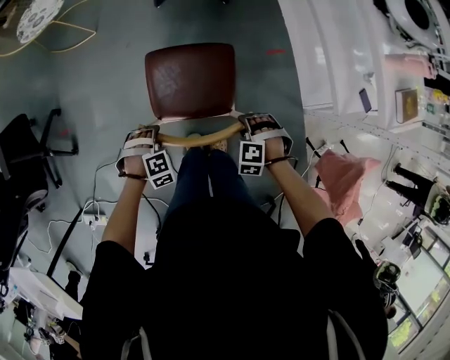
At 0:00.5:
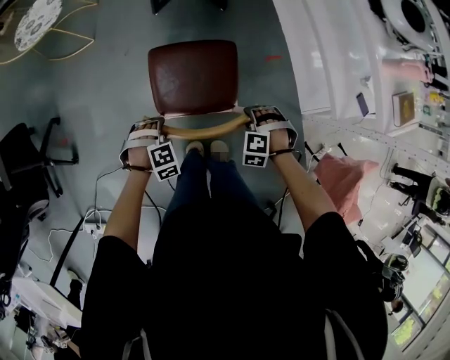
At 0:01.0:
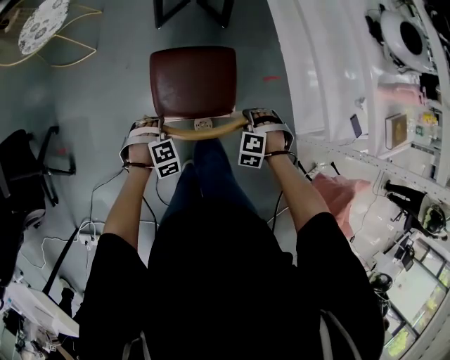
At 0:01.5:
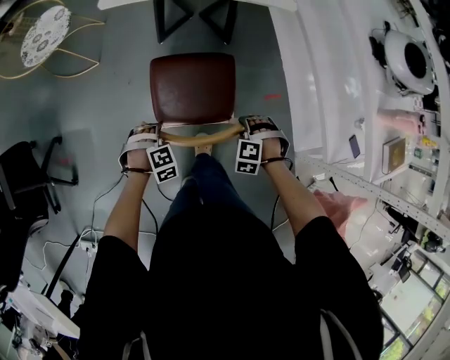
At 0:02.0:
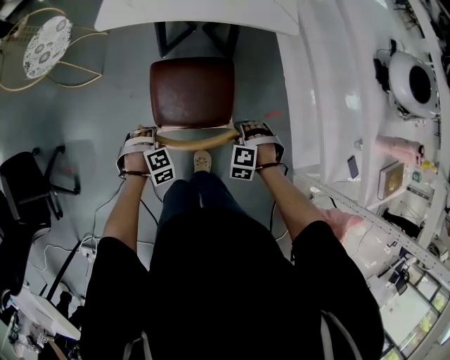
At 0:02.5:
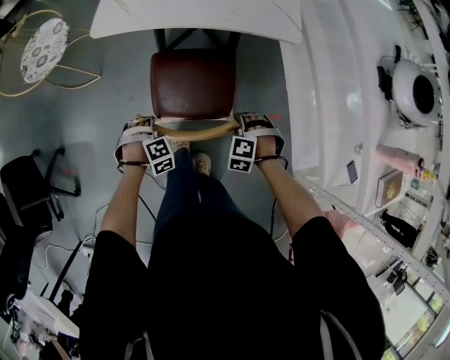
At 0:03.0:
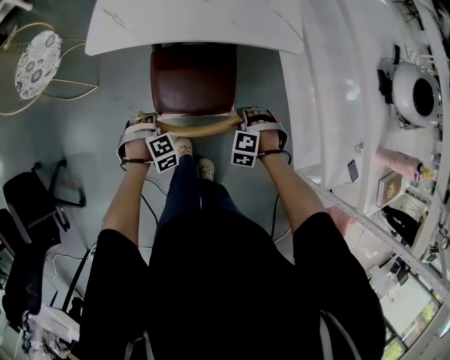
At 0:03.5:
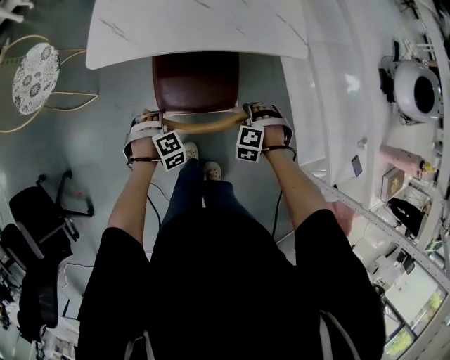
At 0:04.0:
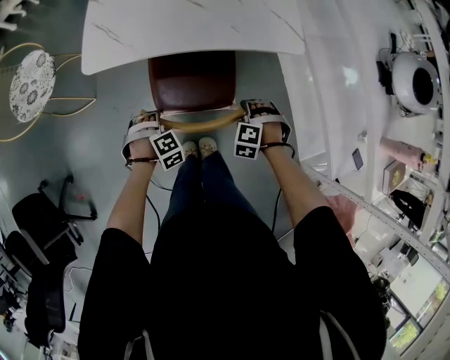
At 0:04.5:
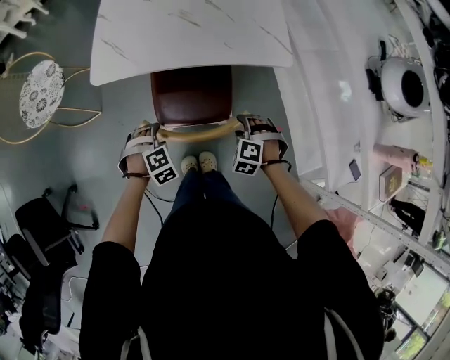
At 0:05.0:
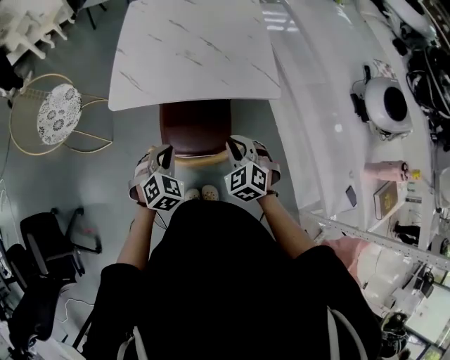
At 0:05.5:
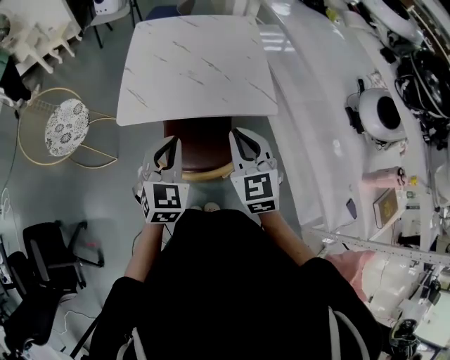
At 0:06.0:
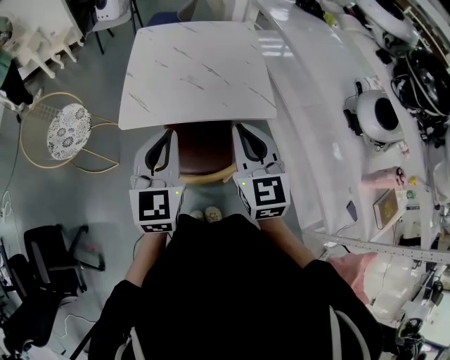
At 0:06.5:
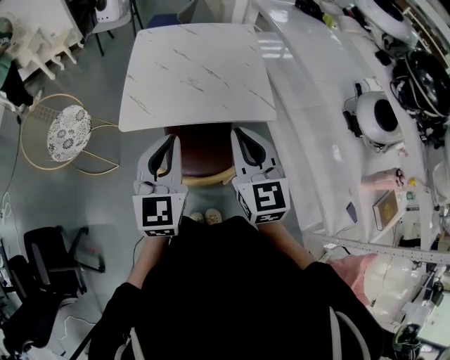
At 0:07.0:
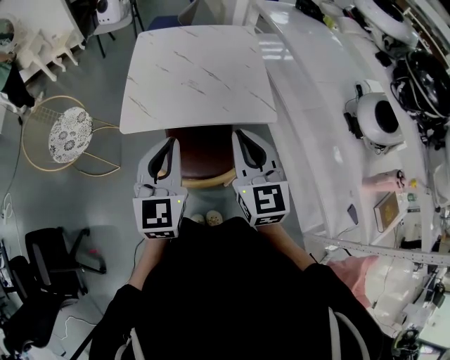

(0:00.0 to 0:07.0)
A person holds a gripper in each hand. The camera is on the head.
0:00.0 - 0:02.0: The left gripper shifts by approximately 30 cm. The right gripper shifts by roughly 30 cm.
0:02.0 - 0:03.5: The grippers both shift forward by about 20 cm.
0:03.5 - 0:05.0: Both grippers move upward, roughly 20 cm. The right gripper changes its angle by some 50 degrees, and closes up, while the left gripper swivels roughly 50 degrees, and closes up.
0:05.0 - 0:07.0: Both grippers move upward, some 25 cm. The right gripper angles its fingers upward, by about 40 degrees. The left gripper angles its fingers upward, by about 40 degrees.

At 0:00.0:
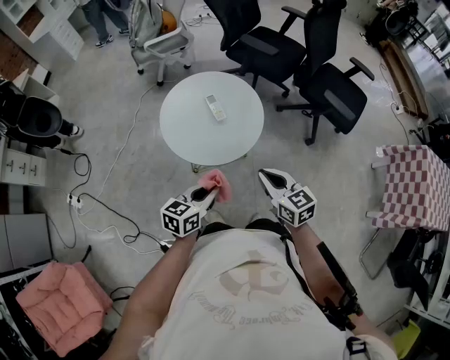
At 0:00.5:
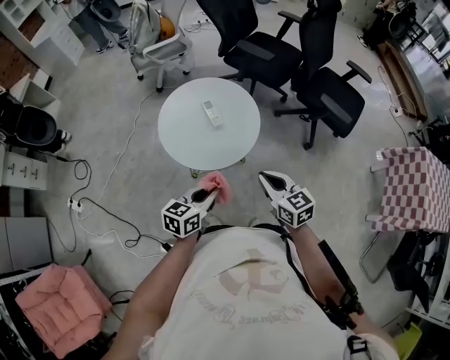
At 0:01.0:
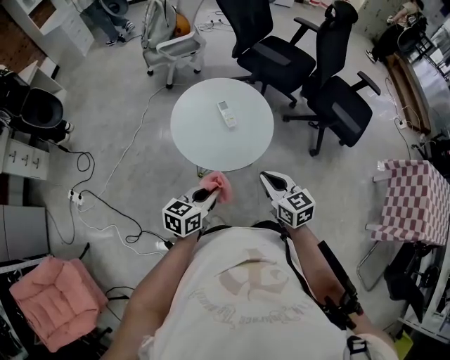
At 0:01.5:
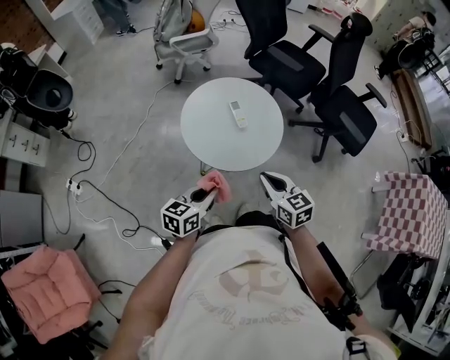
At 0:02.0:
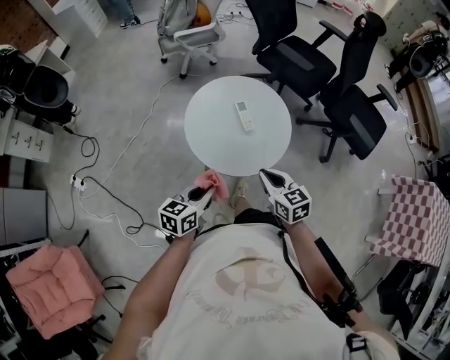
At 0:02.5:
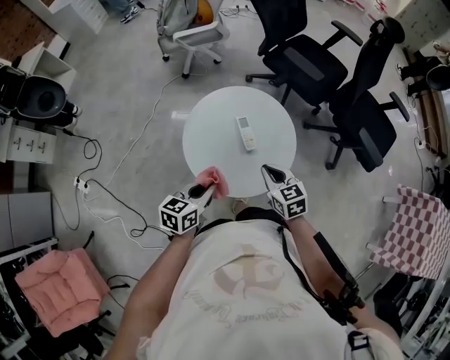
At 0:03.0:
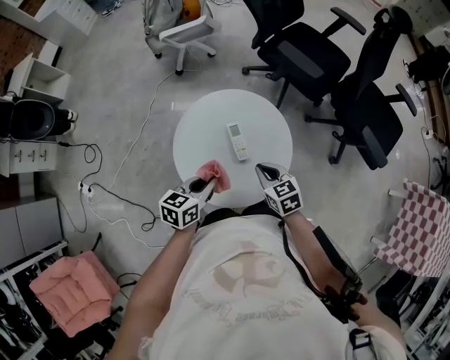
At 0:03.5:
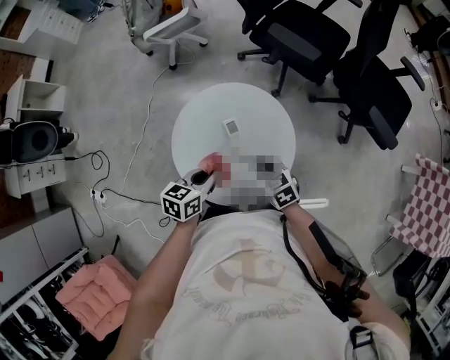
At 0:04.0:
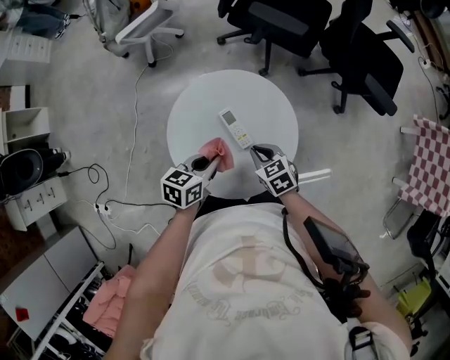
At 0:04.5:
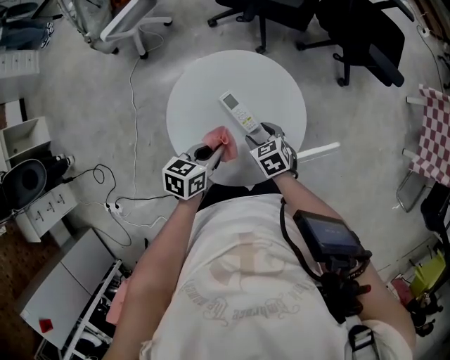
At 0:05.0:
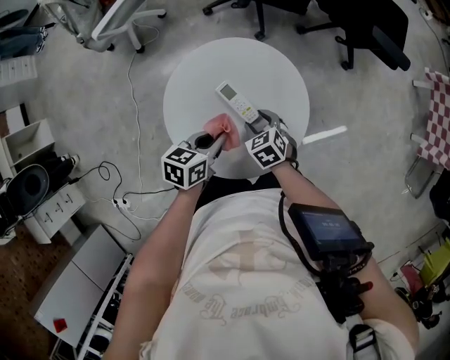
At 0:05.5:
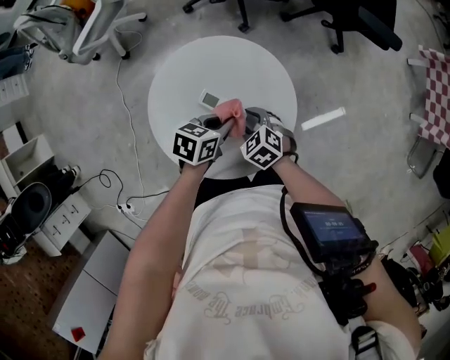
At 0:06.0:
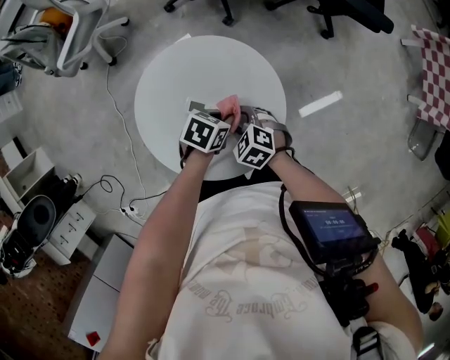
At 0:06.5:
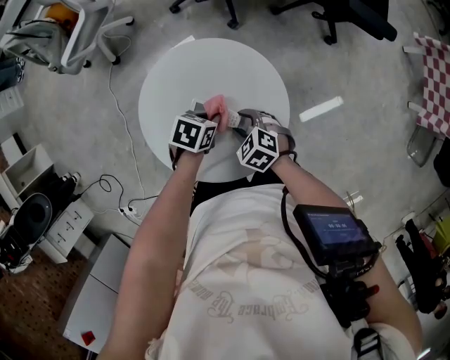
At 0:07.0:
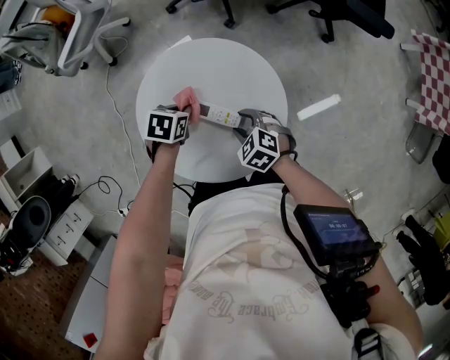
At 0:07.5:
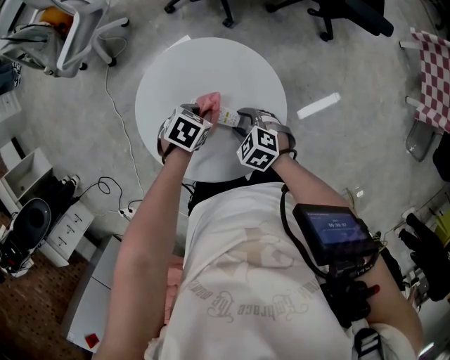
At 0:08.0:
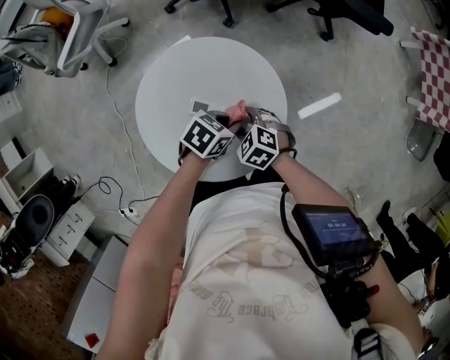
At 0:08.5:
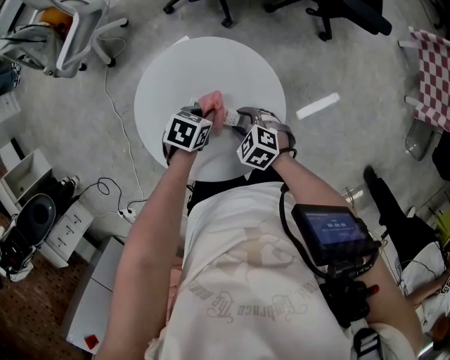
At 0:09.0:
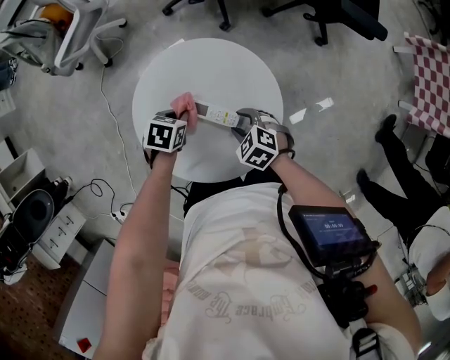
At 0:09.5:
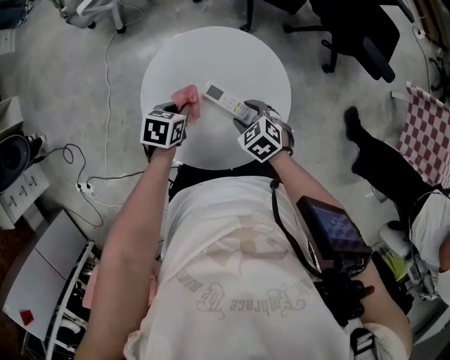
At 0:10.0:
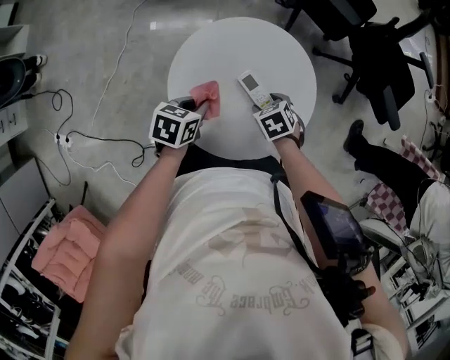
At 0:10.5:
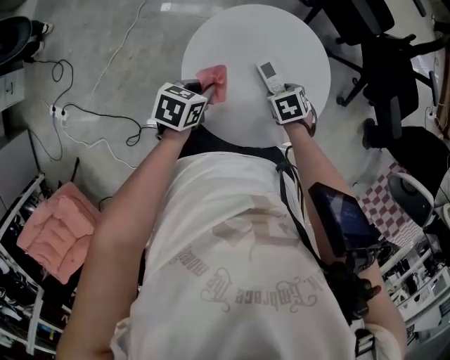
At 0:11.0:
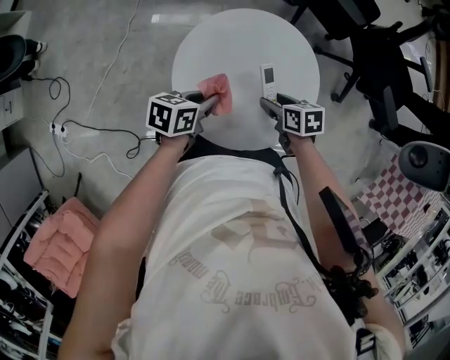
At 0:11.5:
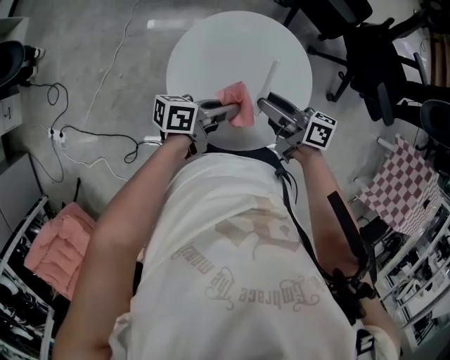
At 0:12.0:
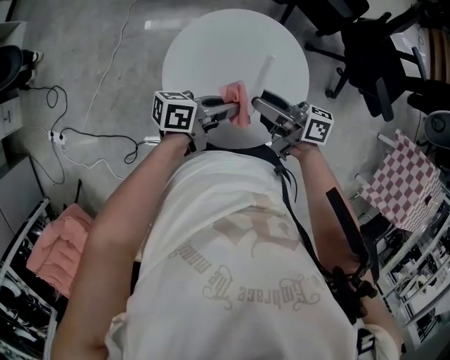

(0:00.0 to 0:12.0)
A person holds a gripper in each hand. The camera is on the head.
0:00.0 - 0:02.0: The right gripper travels to the left and forward by approximately 10 cm, while the left gripper travels to the left by some 10 cm.
0:02.0 - 0:04.0: The right gripper travels forward and downward by about 25 cm, and changes its angle by some 20 degrees, while the left gripper is displaced forward by about 25 cm, and swivels some 20 degrees.
0:04.0 - 0:06.0: The right gripper moves downward, about 5 cm, and opens up. Meanwhile the left gripper ends up roughly 15 cm from where it was, and swivels approximately 40 degrees.
0:08.0 - 0:10.0: The left gripper changes place by roughly 20 cm, and turns by approximately 50 degrees.
0:10.0 - 0:12.0: The right gripper heads upward, covering roughly 20 cm, and points its fingers approximately 80 degrees further upward; the left gripper changes place by some 15 cm, and tilts its fingers approximately 40 degrees upward.

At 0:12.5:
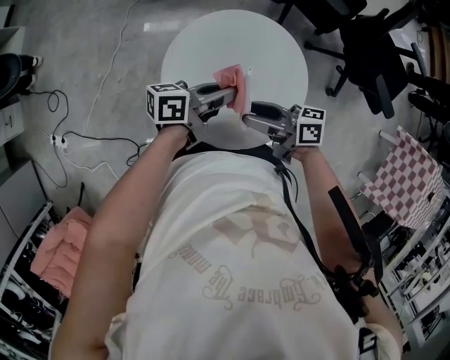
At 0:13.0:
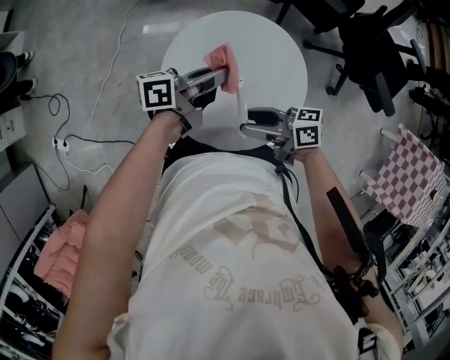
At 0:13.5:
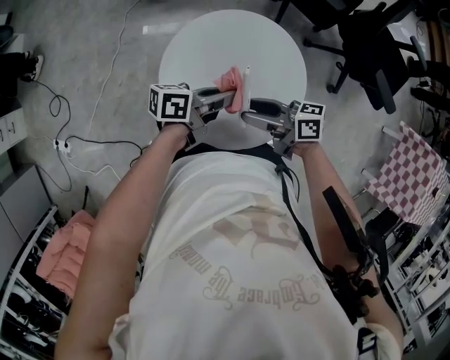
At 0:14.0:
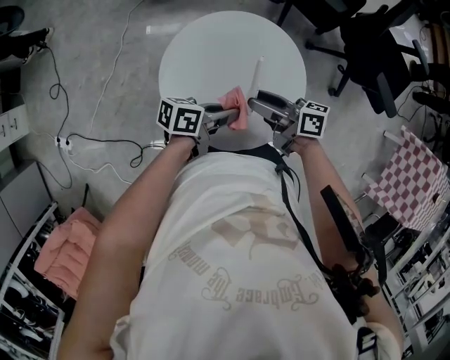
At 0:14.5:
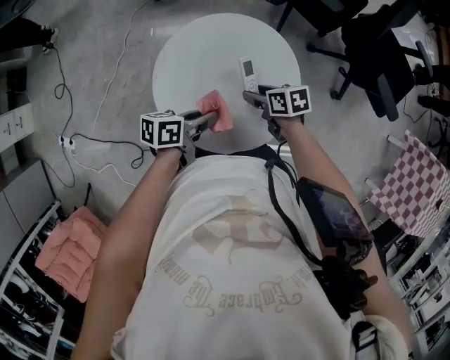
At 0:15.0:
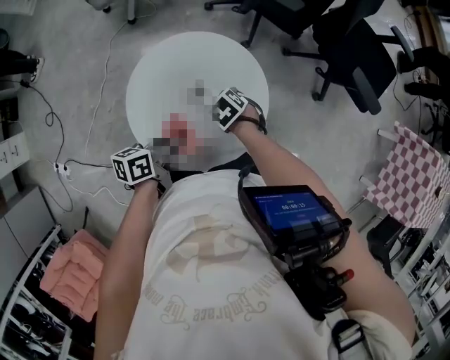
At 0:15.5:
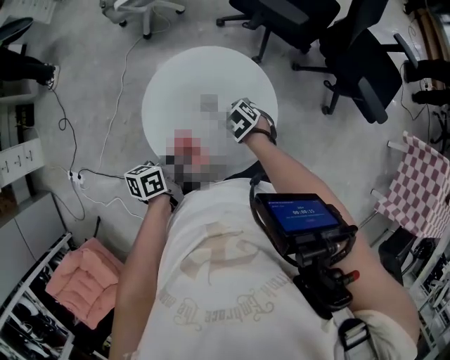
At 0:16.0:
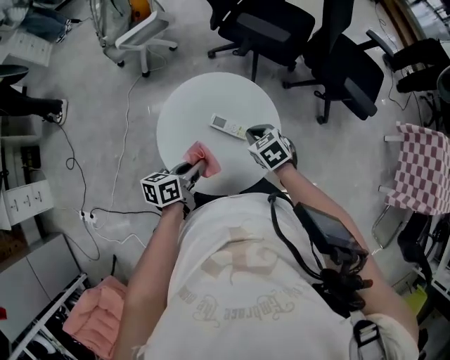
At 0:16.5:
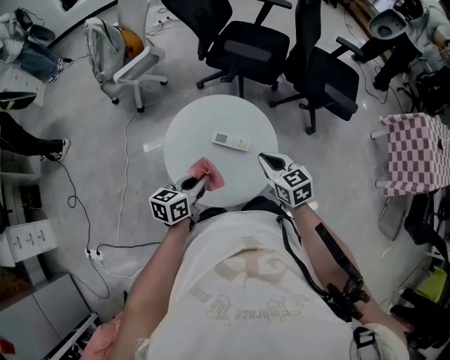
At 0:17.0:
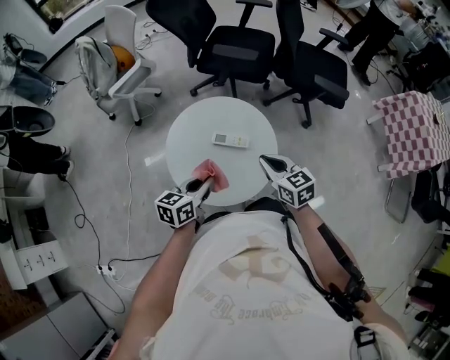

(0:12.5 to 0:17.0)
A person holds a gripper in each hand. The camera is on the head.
0:12.5 - 0:14.5: The right gripper moves downward, roughly 15 cm, and points its fingers roughly 40 degrees further downward. Meanwhile the left gripper shifts approximately 5 cm downward, and changes its angle by roughly 20 degrees.
0:14.5 - 0:17.0: The right gripper goes some 20 cm upward, swivels approximately 50 degrees, and closes its fingers; the left gripper goes about 10 cm upward, and changes its angle by some 40 degrees.

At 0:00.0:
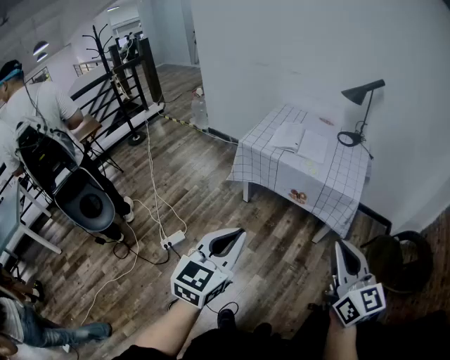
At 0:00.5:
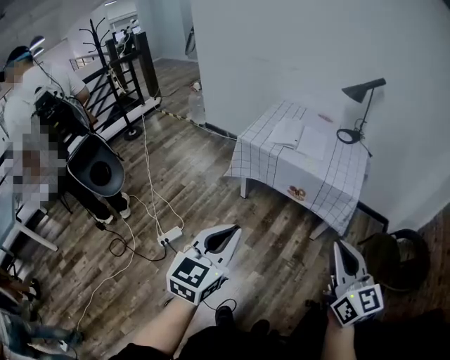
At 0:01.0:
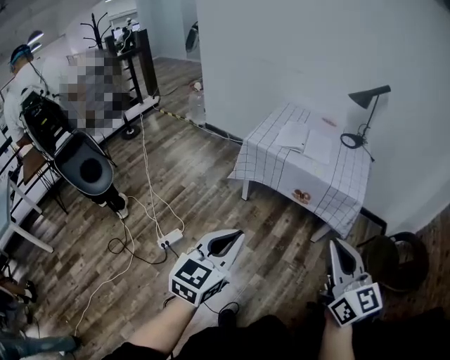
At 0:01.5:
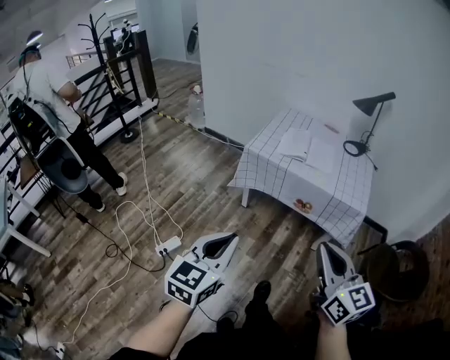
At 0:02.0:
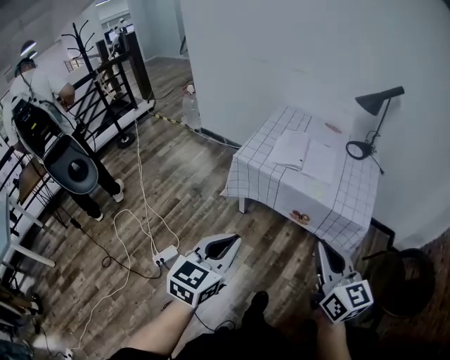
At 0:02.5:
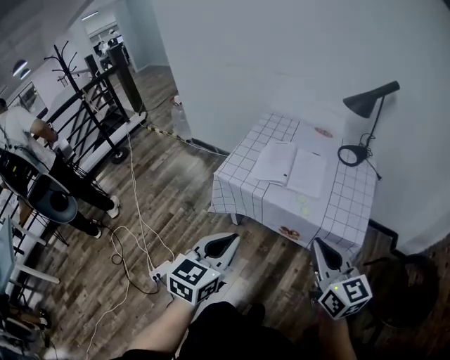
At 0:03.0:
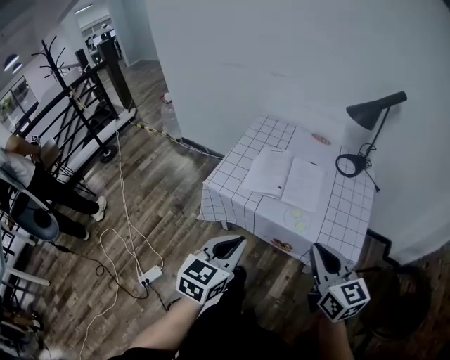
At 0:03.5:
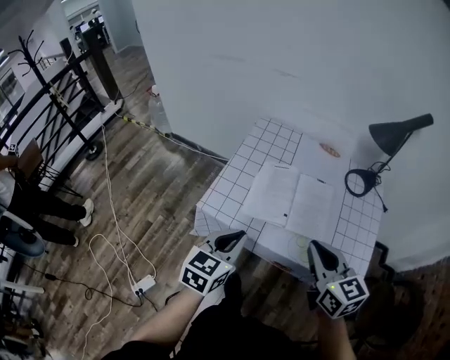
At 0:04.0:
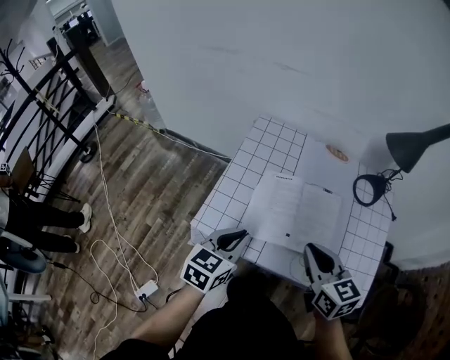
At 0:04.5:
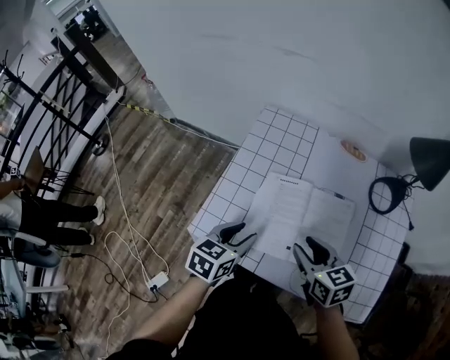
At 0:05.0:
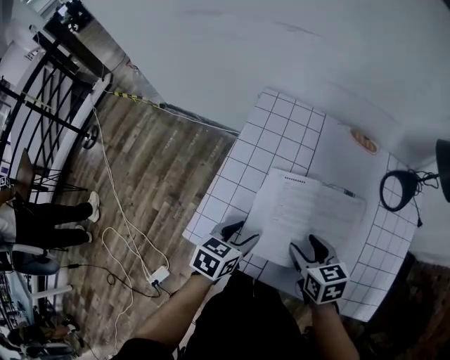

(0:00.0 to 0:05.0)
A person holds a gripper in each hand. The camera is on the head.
0:00.0 - 0:02.5: Both grippers move forward, roughly 35 cm.
0:02.5 - 0:05.0: Both grippers are carried forward, approximately 50 cm. The two grippers go about 30 cm downward. The right gripper tips its fingers downward by roughly 40 degrees, and opens. Meanwhile the left gripper changes its angle by some 40 degrees, and opens its fingers.
